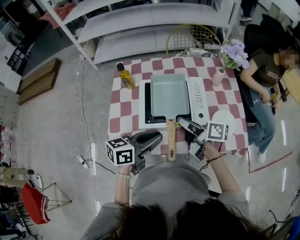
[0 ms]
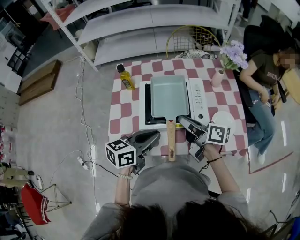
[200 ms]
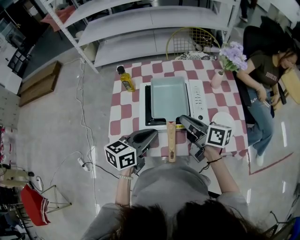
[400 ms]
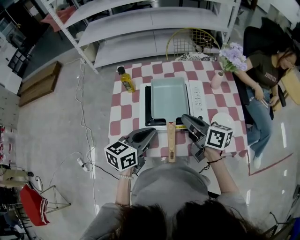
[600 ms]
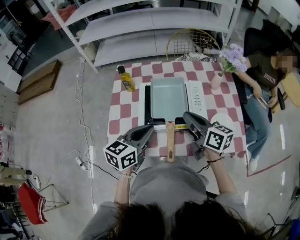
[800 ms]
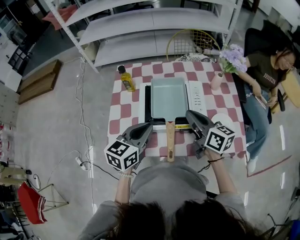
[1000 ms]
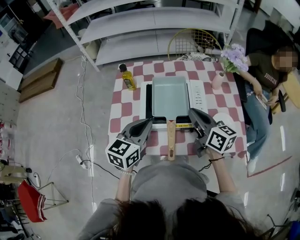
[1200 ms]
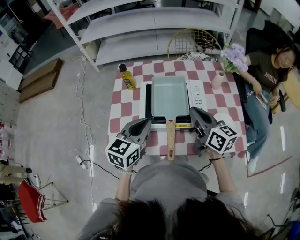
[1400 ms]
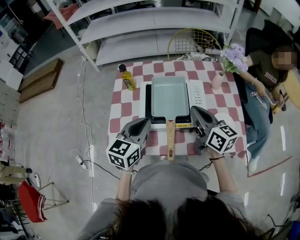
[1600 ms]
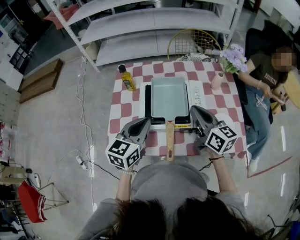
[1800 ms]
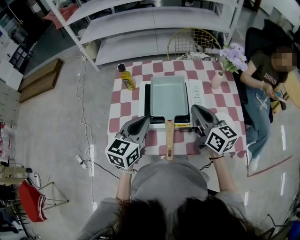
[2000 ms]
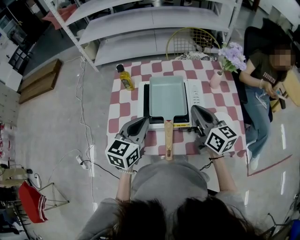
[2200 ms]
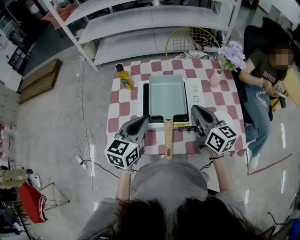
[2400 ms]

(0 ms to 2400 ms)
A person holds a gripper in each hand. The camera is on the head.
0 ms - 1200 ms: The left gripper changes place by roughly 5 cm, and rotates approximately 30 degrees. The right gripper shifts approximately 5 cm upward, turns by approximately 40 degrees, and closes its fingers.
1200 ms - 2400 ms: The grippers make only small movements.

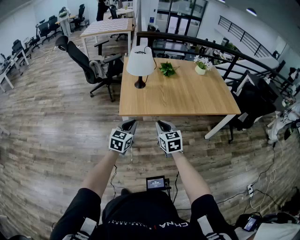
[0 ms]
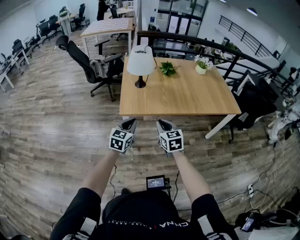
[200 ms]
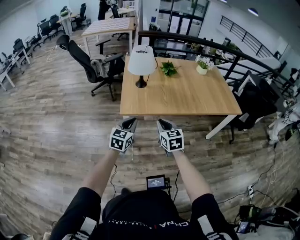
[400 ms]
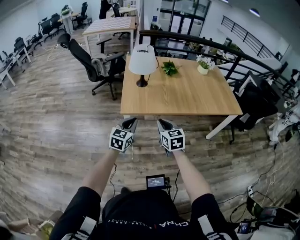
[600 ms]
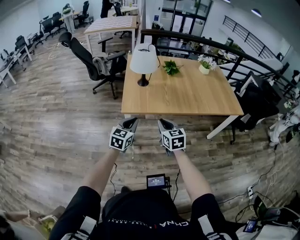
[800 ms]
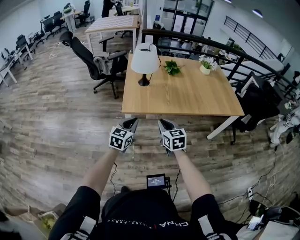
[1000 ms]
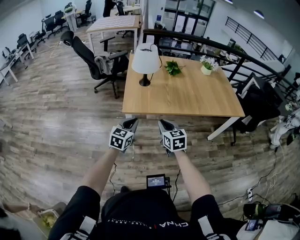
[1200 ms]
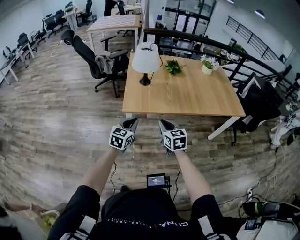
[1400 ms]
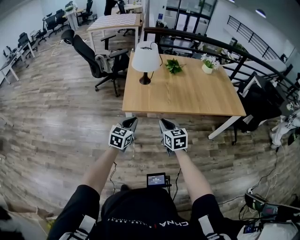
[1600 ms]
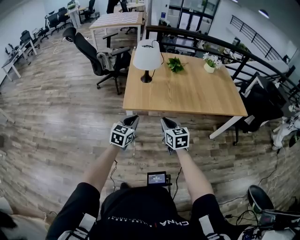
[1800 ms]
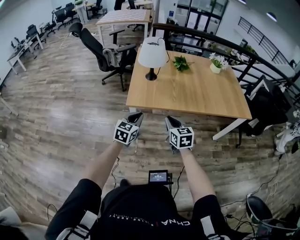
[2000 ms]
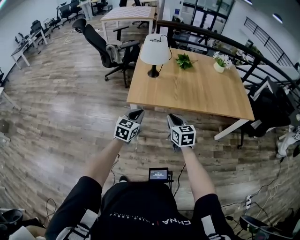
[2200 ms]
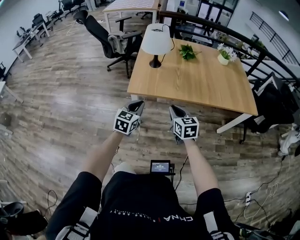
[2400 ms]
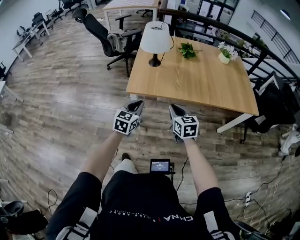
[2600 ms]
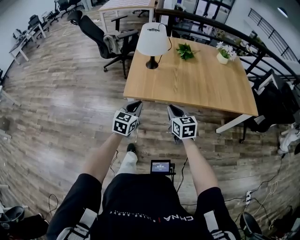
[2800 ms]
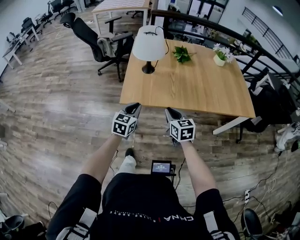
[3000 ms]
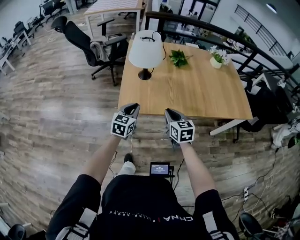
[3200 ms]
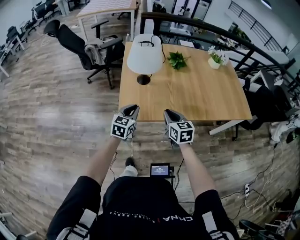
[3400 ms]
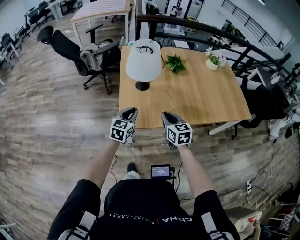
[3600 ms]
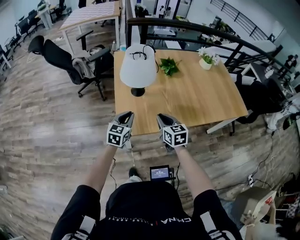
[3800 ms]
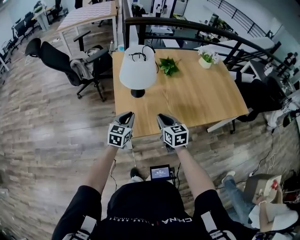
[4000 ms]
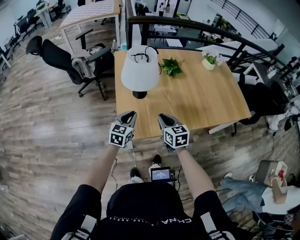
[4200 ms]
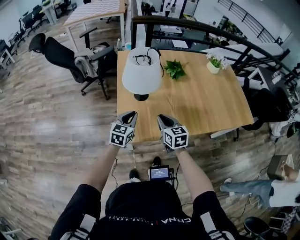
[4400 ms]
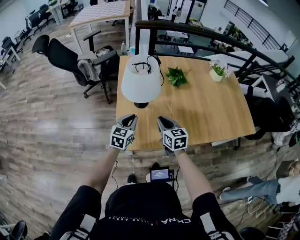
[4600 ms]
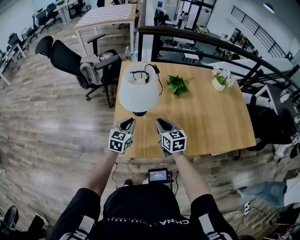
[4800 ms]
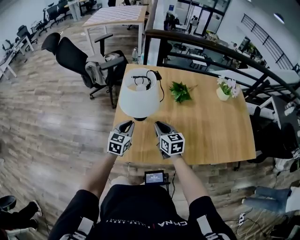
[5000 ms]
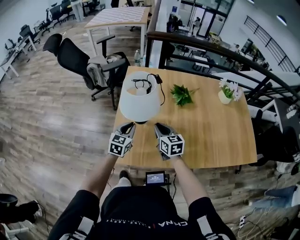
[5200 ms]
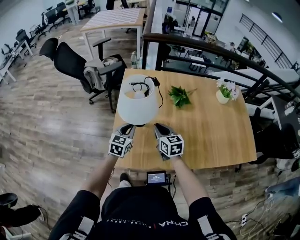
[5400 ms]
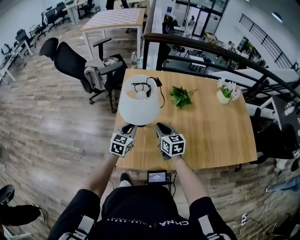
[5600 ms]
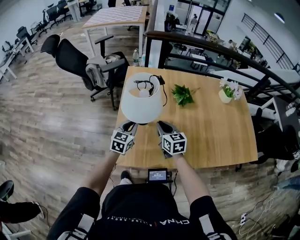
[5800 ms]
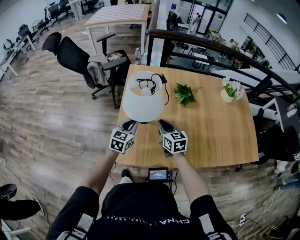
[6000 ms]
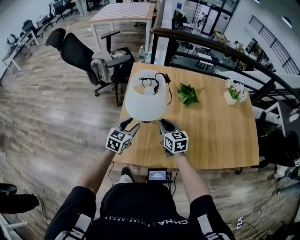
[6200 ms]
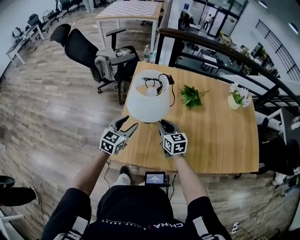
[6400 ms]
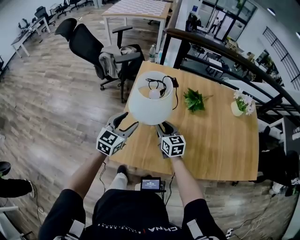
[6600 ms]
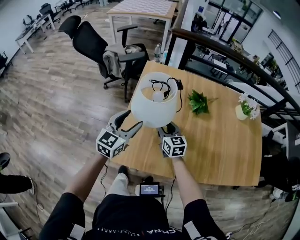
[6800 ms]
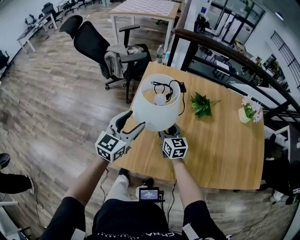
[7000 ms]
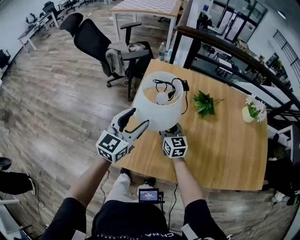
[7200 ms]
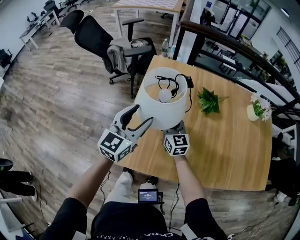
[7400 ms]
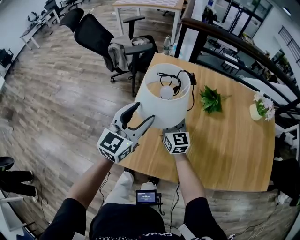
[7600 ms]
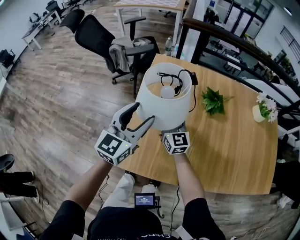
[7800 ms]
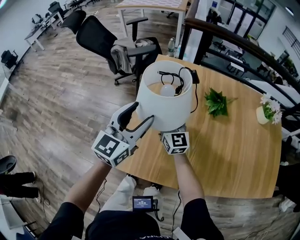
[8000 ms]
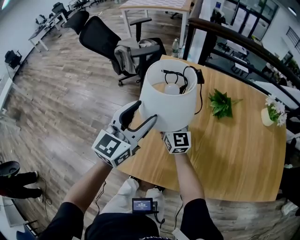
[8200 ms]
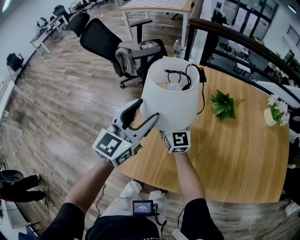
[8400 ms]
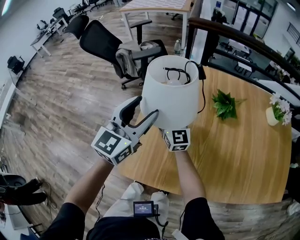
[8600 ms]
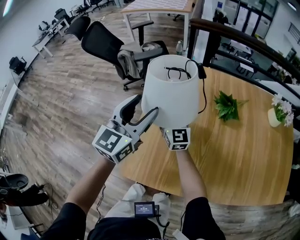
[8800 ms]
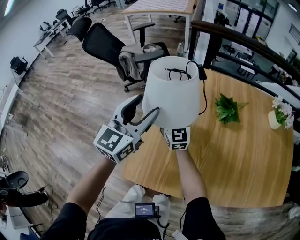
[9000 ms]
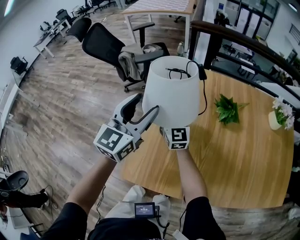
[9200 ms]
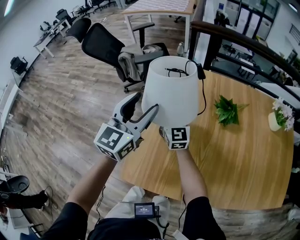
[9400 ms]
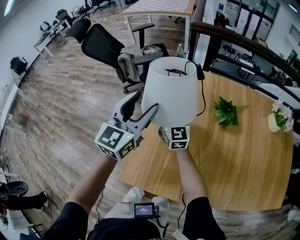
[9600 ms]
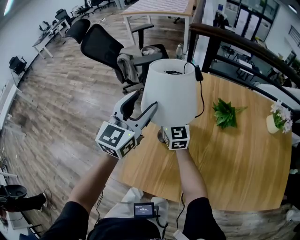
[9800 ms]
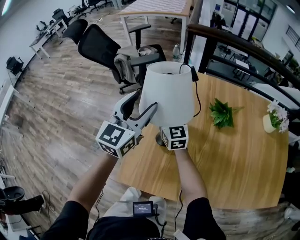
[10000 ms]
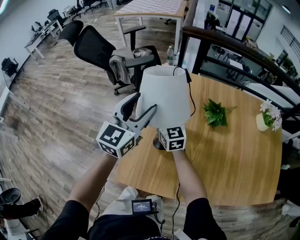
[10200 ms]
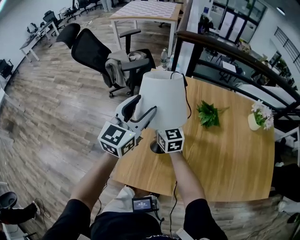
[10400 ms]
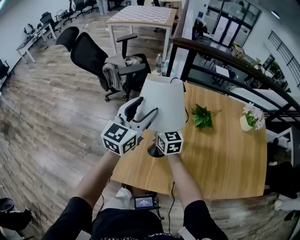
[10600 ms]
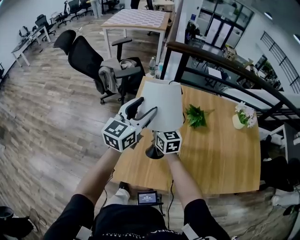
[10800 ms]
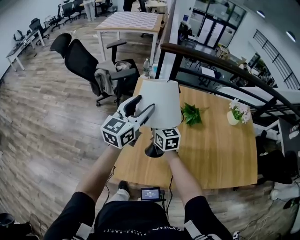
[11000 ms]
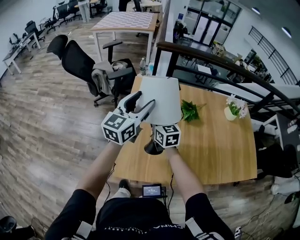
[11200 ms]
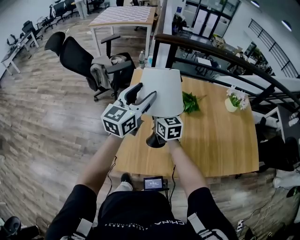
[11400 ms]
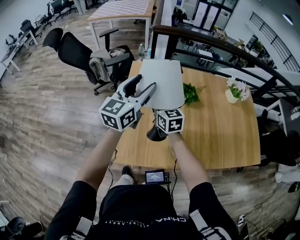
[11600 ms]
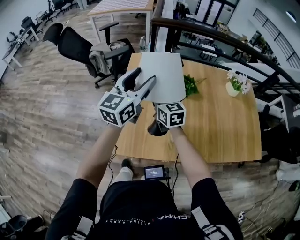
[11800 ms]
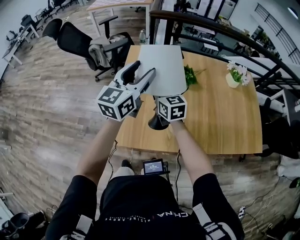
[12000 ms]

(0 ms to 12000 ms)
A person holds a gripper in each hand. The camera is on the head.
0 ms - 1600 ms: The grippers move only a little.
1600 ms - 3000 ms: The grippers both shift forward by roughly 10 cm.
3000 ms - 4400 ms: The left gripper is displaced forward by approximately 25 cm. The right gripper moves forward and to the left, about 25 cm.
4400 ms - 6000 ms: The two grippers go about 15 cm forward.
6000 ms - 7600 ms: The right gripper shifts some 10 cm forward and to the left, turns by some 20 degrees, and opens its fingers. Meanwhile the left gripper goes about 10 cm upward, and opens its fingers.
7600 ms - 9000 ms: The grippers both shift forward by approximately 5 cm.
9000 ms - 10400 ms: The left gripper moves approximately 5 cm; the right gripper closes.
10400 ms - 12000 ms: The two grippers go approximately 15 cm backward, to the right and upward.

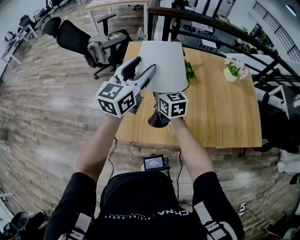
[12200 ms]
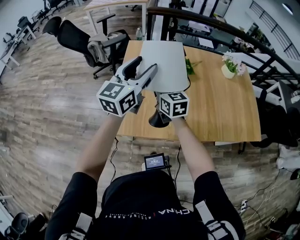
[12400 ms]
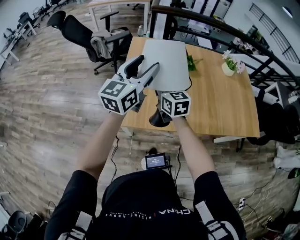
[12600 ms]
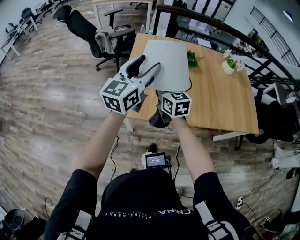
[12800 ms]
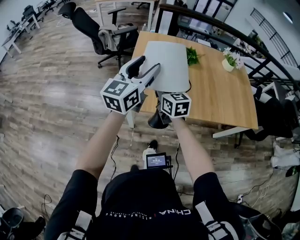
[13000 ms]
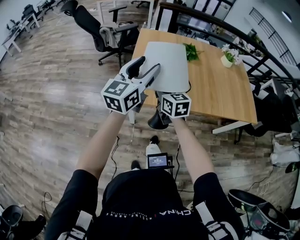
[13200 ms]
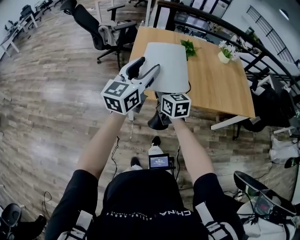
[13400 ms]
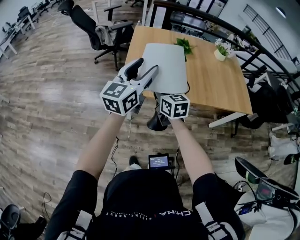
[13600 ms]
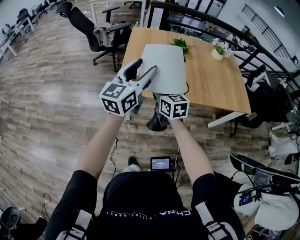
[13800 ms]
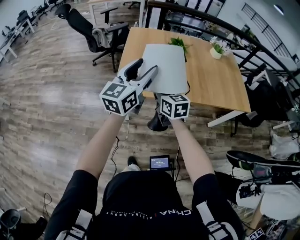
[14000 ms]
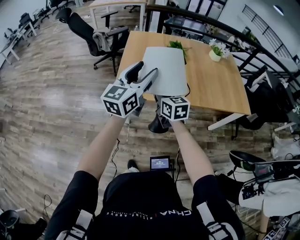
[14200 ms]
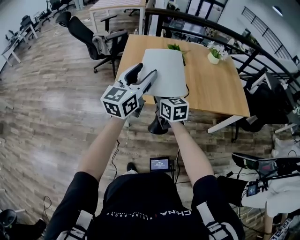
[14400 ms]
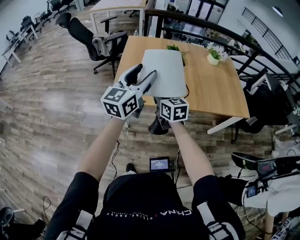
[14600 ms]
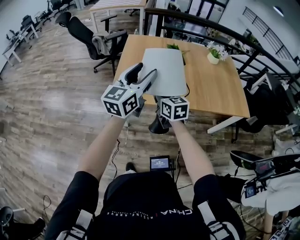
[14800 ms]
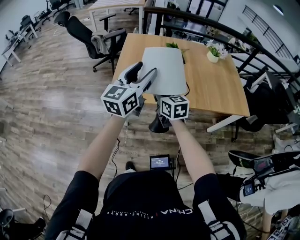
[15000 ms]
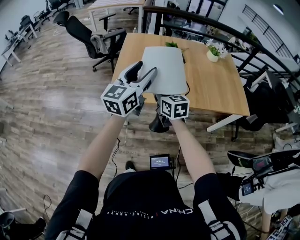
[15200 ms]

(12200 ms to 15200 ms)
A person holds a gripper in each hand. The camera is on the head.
12200 ms - 13800 ms: The two grippers go approximately 35 cm backward.
13800 ms - 15200 ms: The two grippers go roughly 10 cm to the right.

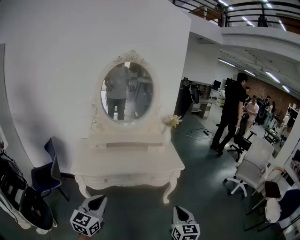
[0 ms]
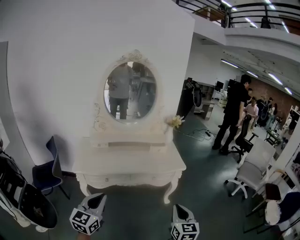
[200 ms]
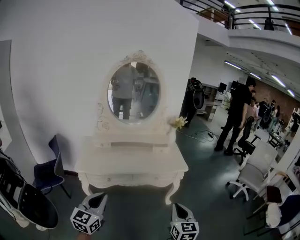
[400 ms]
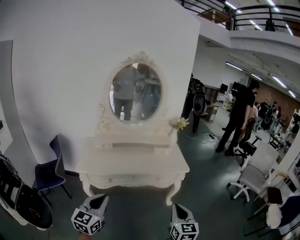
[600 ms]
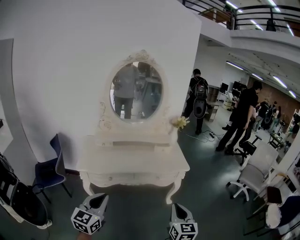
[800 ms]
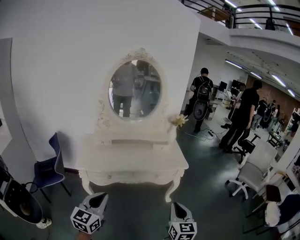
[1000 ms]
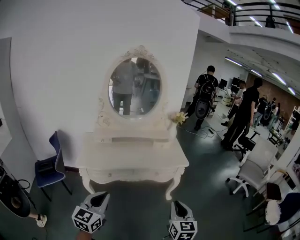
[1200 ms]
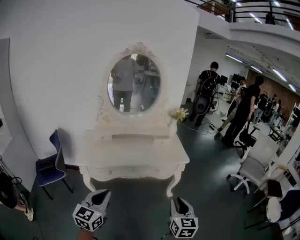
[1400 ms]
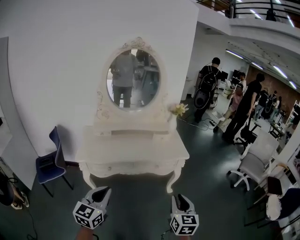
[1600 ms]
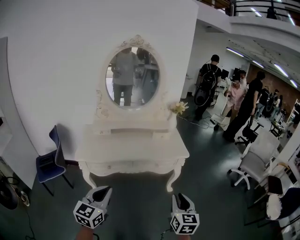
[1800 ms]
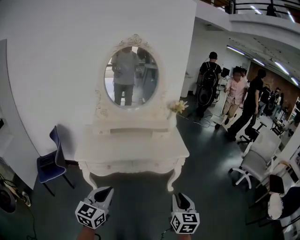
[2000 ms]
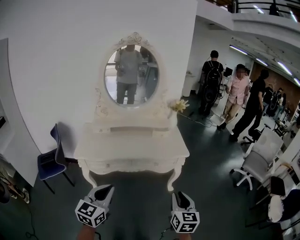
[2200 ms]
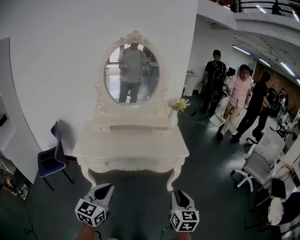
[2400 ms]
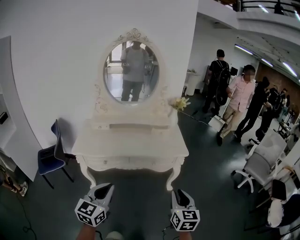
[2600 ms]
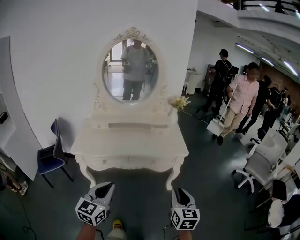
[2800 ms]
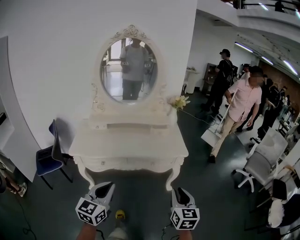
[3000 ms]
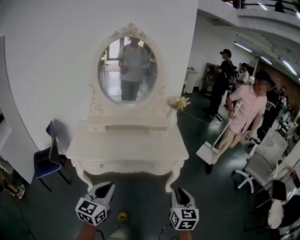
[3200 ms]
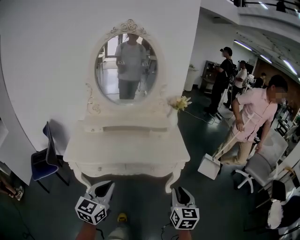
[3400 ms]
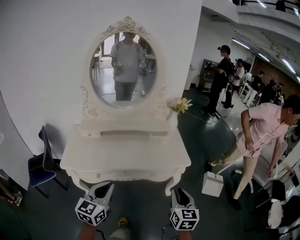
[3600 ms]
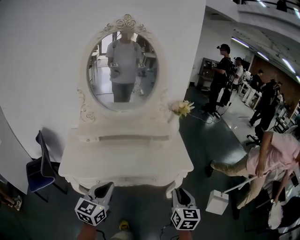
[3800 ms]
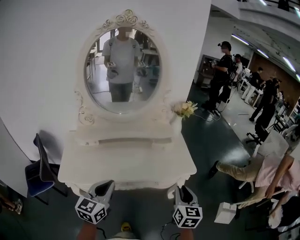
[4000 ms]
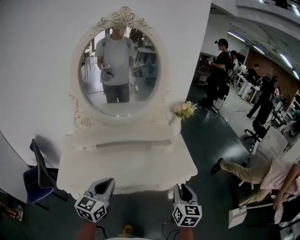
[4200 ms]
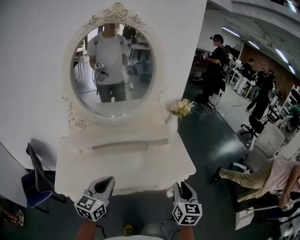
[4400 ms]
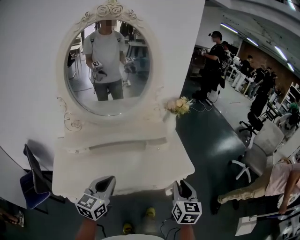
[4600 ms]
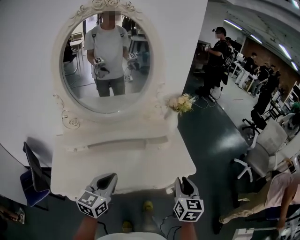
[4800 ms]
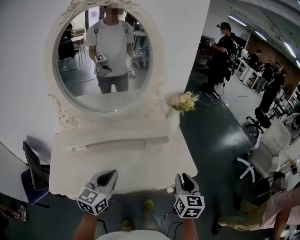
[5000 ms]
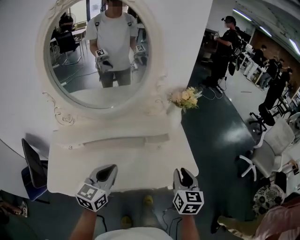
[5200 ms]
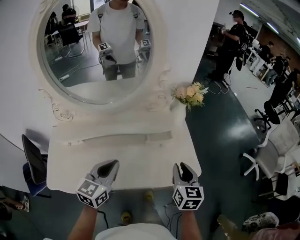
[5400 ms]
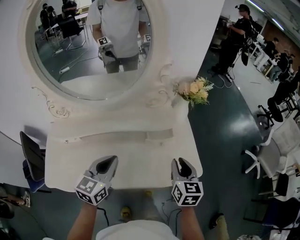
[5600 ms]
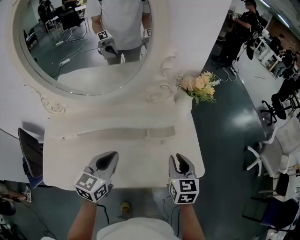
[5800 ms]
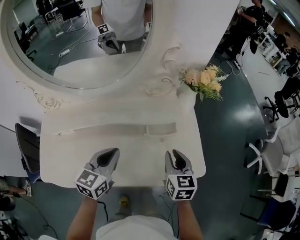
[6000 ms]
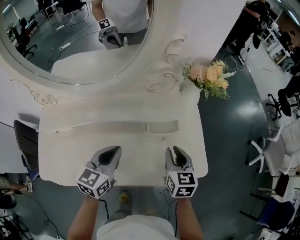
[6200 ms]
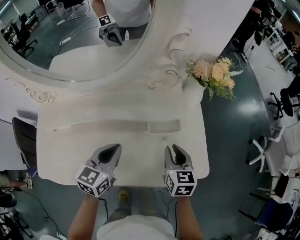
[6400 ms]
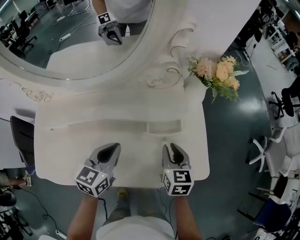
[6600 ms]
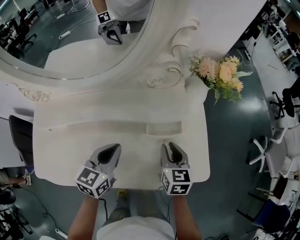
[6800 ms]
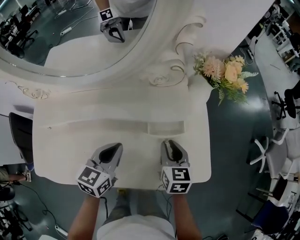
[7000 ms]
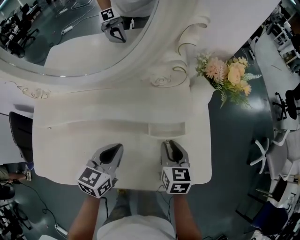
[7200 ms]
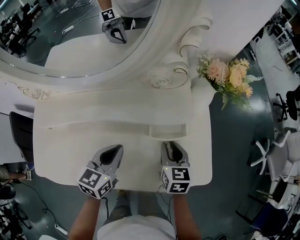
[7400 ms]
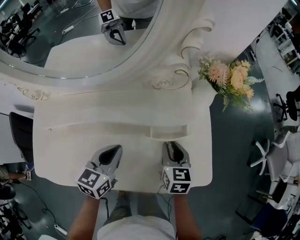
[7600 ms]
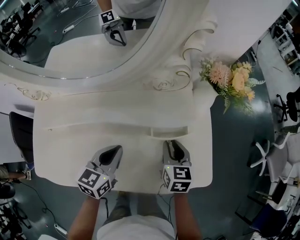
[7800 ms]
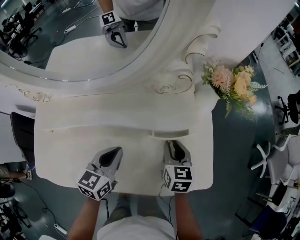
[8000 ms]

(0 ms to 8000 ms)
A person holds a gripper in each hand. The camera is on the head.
0 ms - 1600 ms: The grippers move only a little.
1600 ms - 3200 ms: The two grippers go roughly 15 cm forward and to the right.
3200 ms - 4800 ms: Both grippers move forward, some 30 cm.
4800 ms - 6400 ms: Both grippers travel together forward and downward, about 30 cm. The right gripper rotates some 20 degrees.
6400 ms - 8000 ms: The left gripper changes place by roughly 5 cm. The right gripper travels forward by approximately 5 cm.
